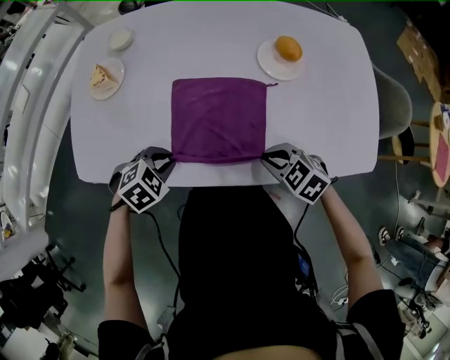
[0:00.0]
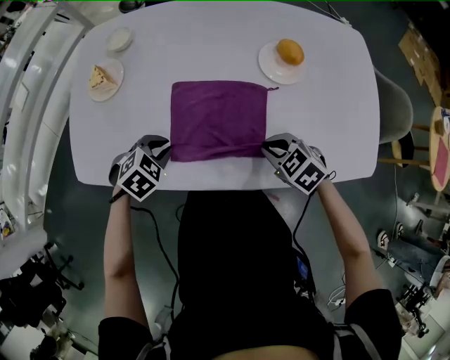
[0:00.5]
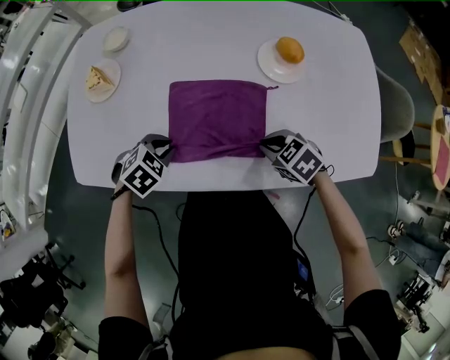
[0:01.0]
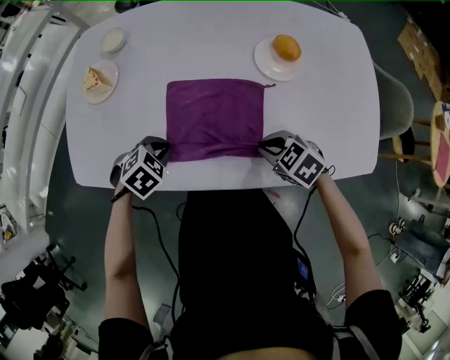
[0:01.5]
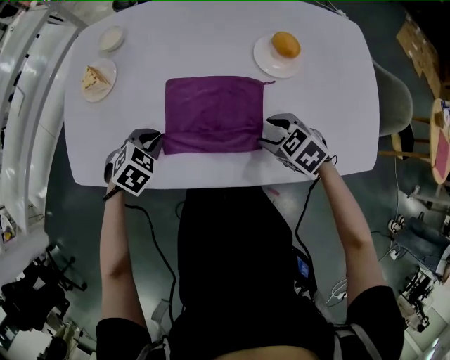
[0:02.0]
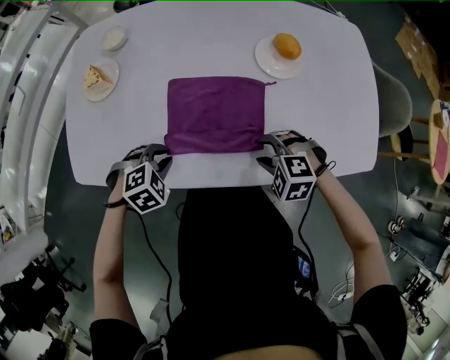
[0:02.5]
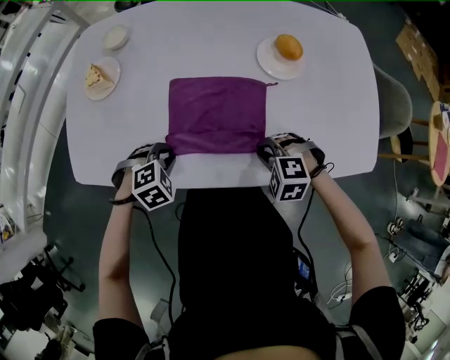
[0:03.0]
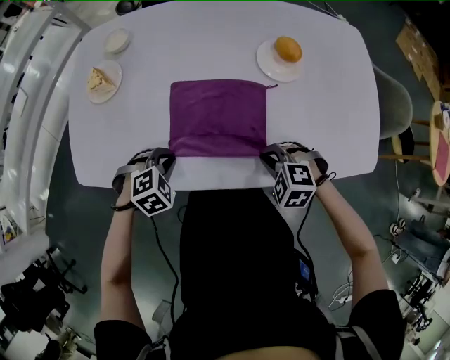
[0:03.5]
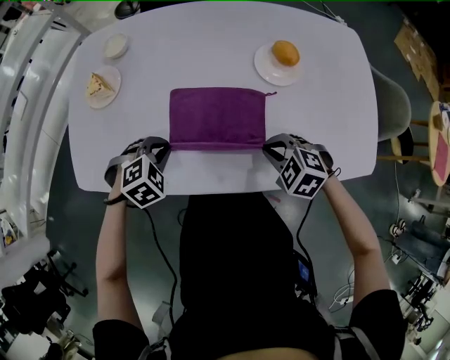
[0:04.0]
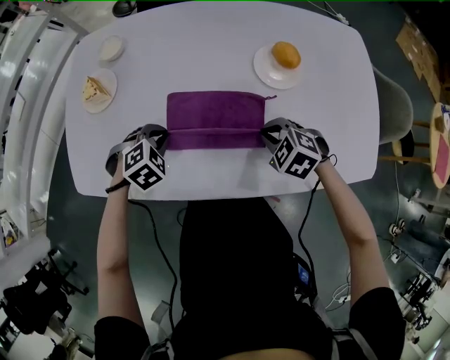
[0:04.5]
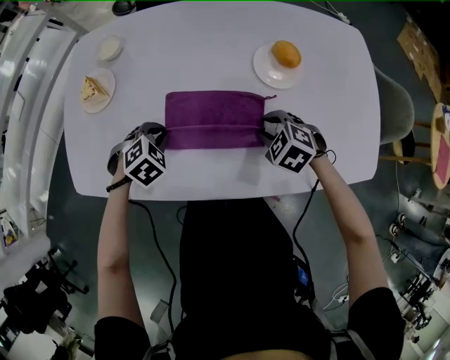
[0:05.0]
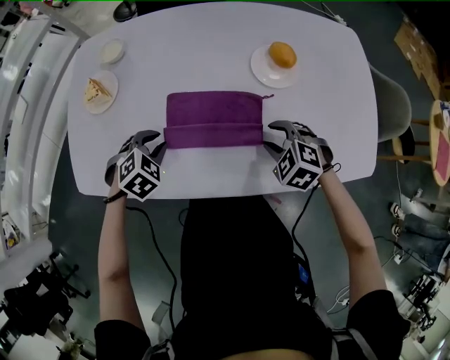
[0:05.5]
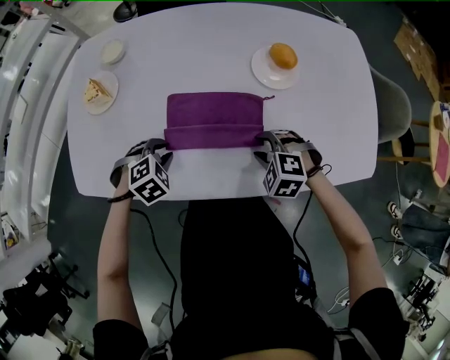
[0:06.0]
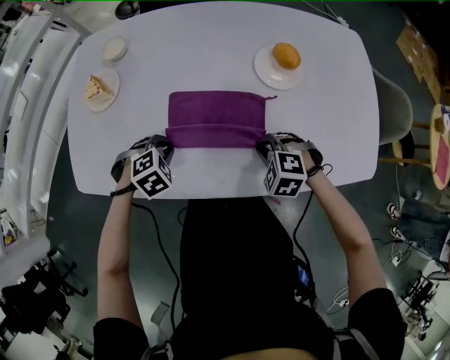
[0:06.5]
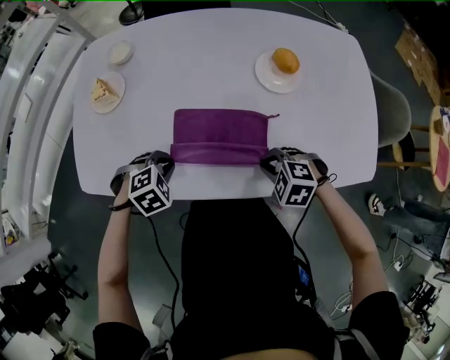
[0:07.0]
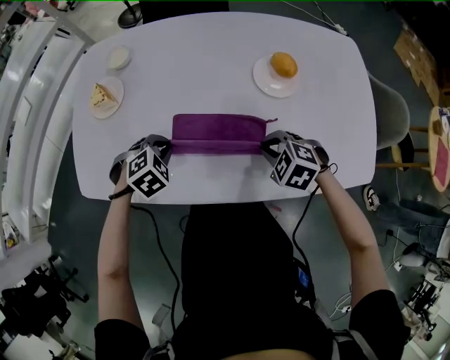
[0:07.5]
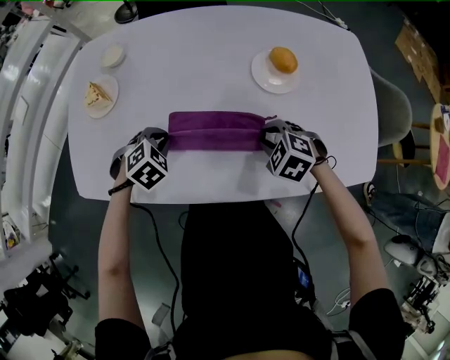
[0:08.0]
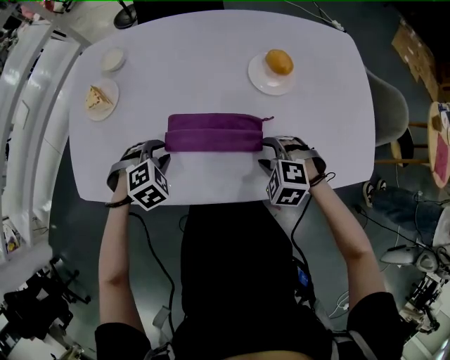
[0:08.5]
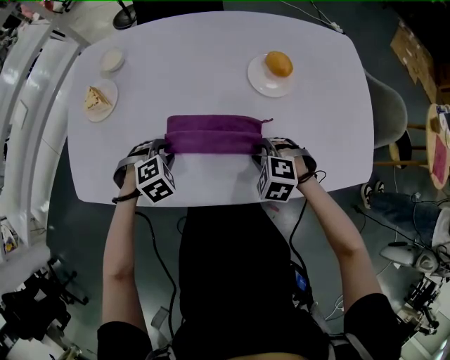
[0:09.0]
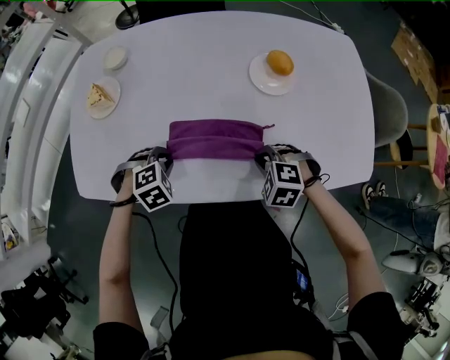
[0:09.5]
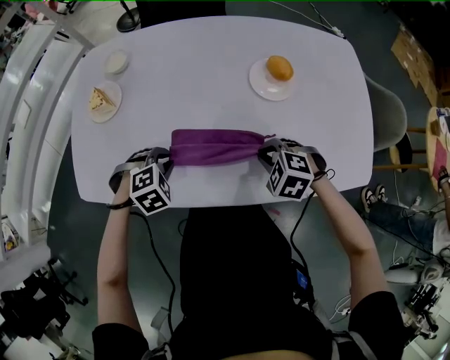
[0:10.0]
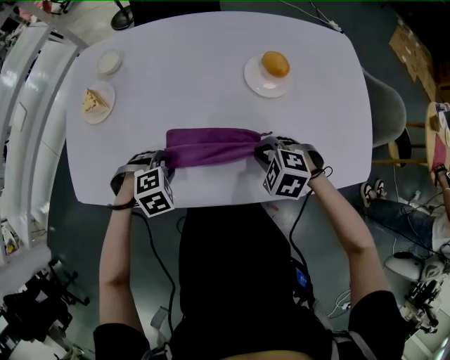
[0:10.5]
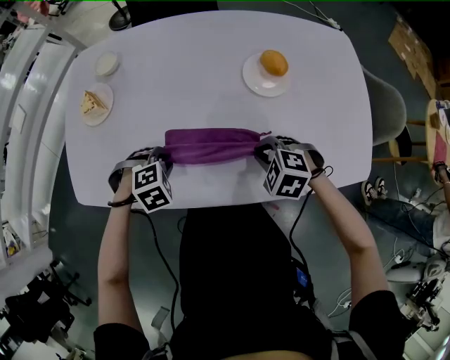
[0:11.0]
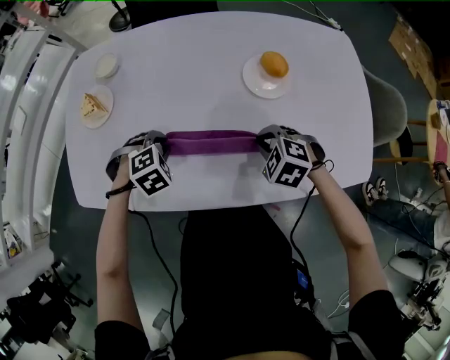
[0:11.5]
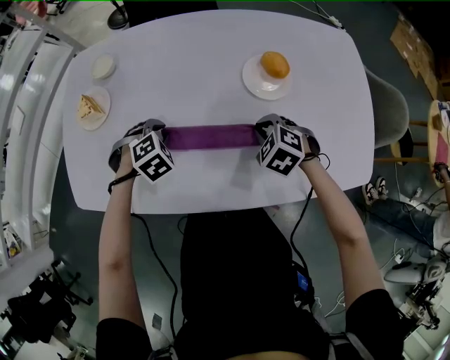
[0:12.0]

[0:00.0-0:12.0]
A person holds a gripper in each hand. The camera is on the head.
0:00.0 to 0:02.0: The right gripper changes place by roughly 10 cm, and opens its fingers. Meanwhile the left gripper moves about 10 cm.
0:02.0 to 0:04.0: The right gripper closes its fingers.
0:04.0 to 0:06.0: The right gripper goes forward and returns, approximately 10 cm each way, and opens.
0:06.0 to 0:08.0: The left gripper is displaced forward by approximately 5 cm.
0:08.0 to 0:10.0: The left gripper ends up roughly 5 cm from where it was.
0:10.0 to 0:12.0: The left gripper changes place by about 10 cm, while the right gripper moves about 10 cm.

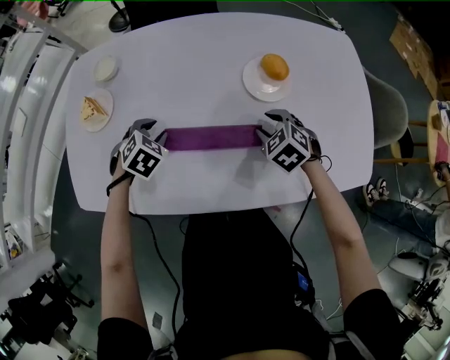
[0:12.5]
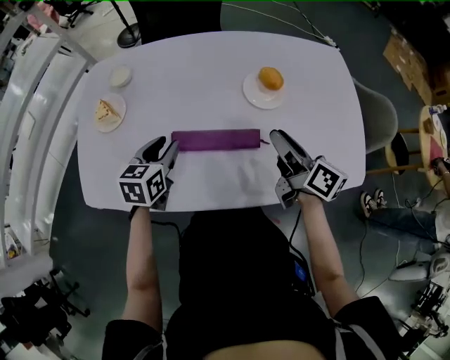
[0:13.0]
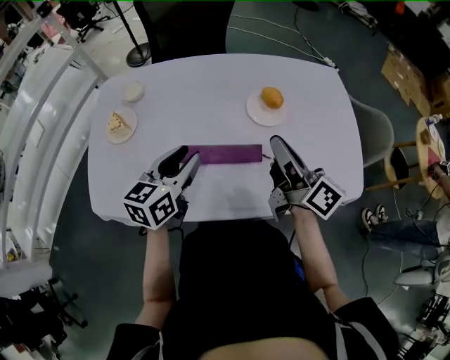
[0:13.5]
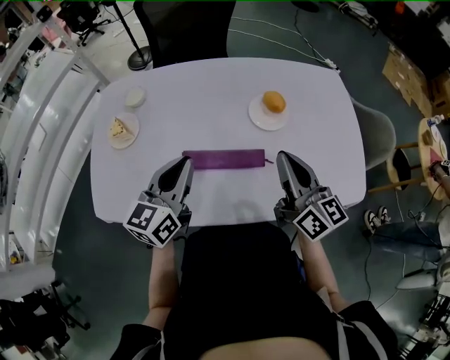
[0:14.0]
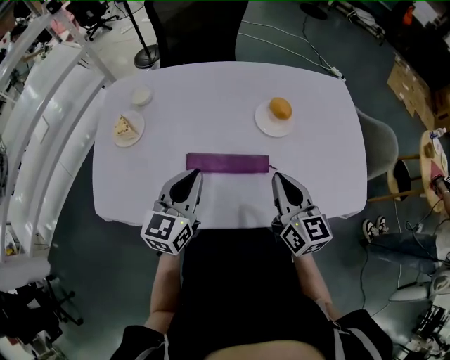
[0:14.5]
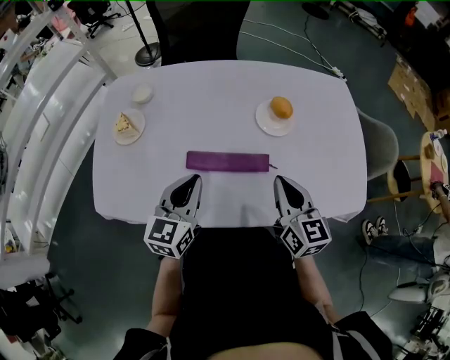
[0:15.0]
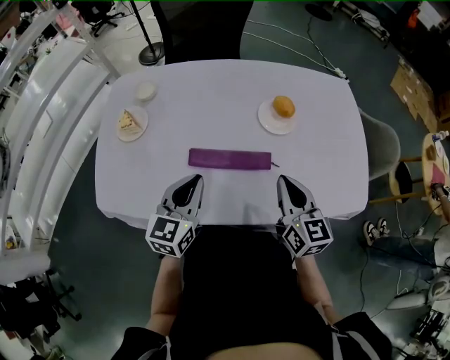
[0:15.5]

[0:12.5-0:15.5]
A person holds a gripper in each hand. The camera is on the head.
0:12.5 to 0:14.0: Both grippers travel together upward, approximately 25 cm. The left gripper tilts its fingers some 60 degrees upward, and closes up. Meanwhile the right gripper tips its fingers upward by approximately 60 degrees, and closes up.
0:14.0 to 0:15.5: The grippers both shift downward by some 5 cm. The right gripper swivels some 20 degrees.

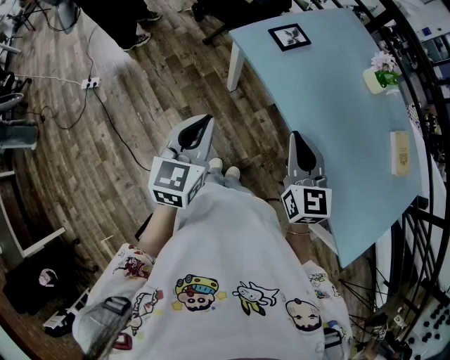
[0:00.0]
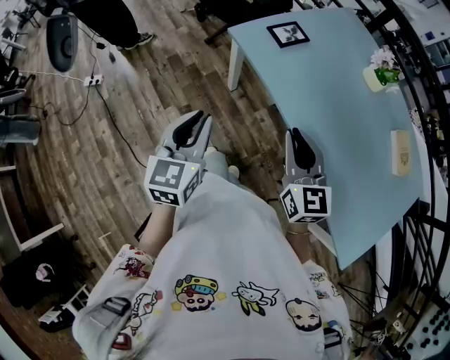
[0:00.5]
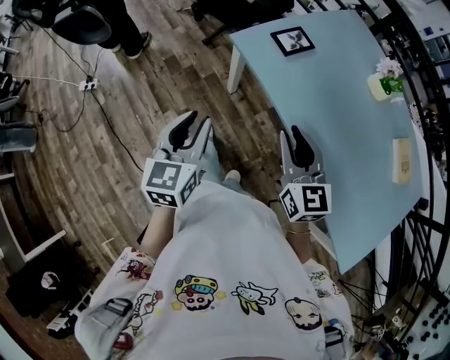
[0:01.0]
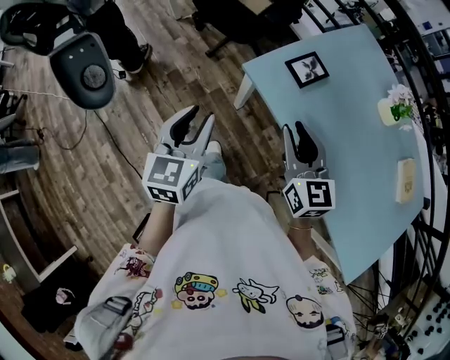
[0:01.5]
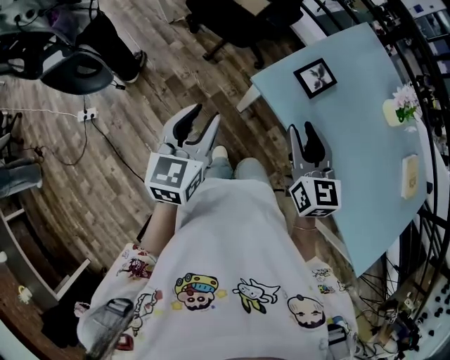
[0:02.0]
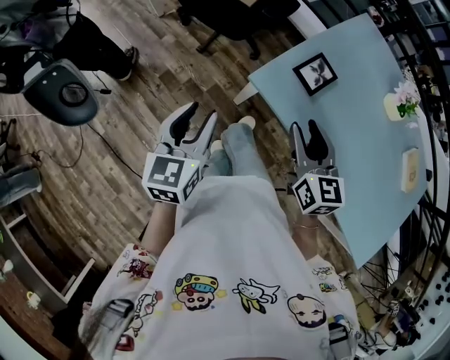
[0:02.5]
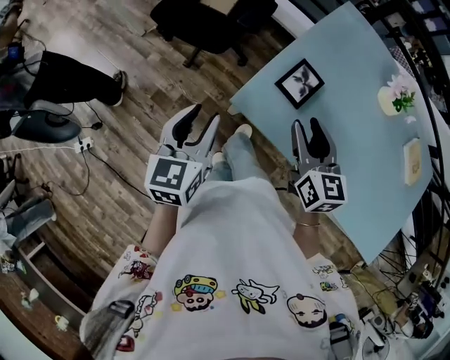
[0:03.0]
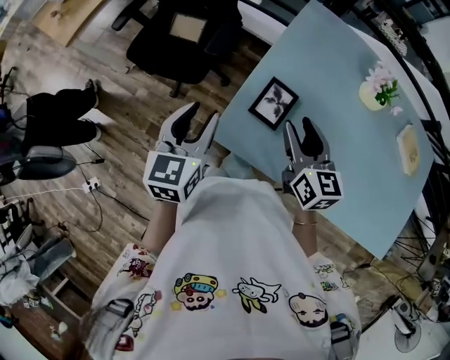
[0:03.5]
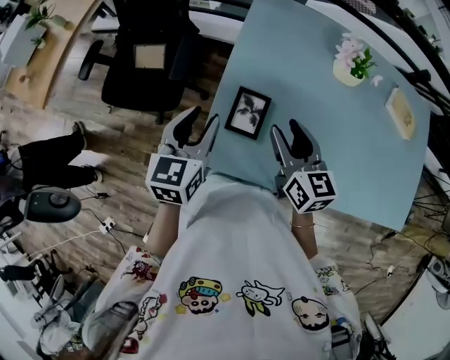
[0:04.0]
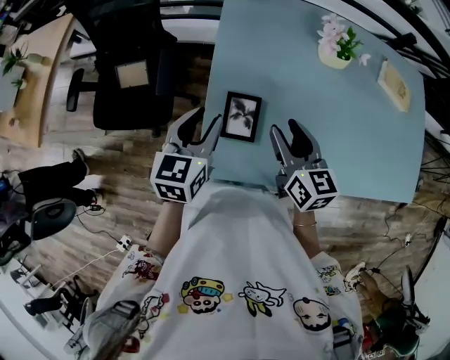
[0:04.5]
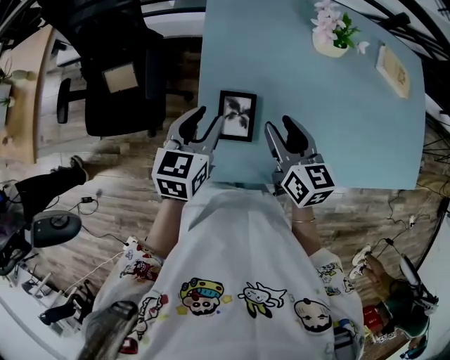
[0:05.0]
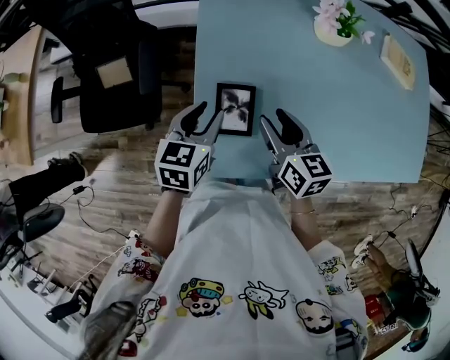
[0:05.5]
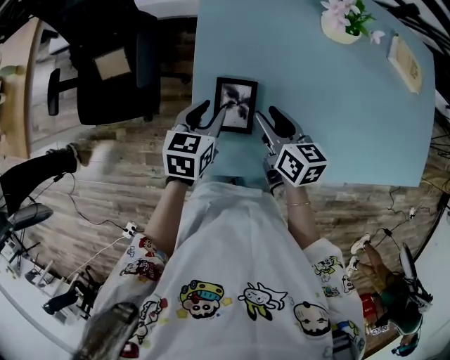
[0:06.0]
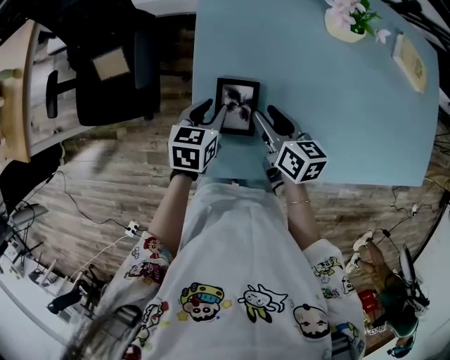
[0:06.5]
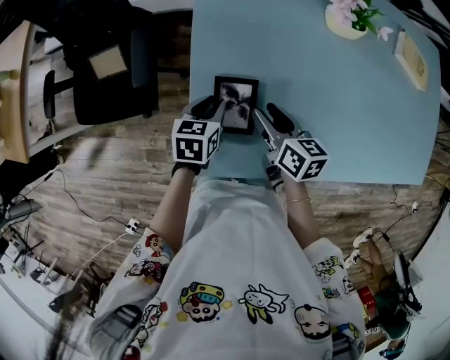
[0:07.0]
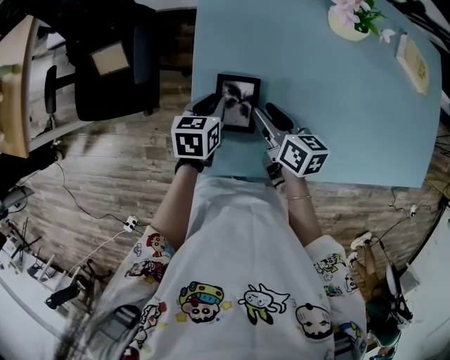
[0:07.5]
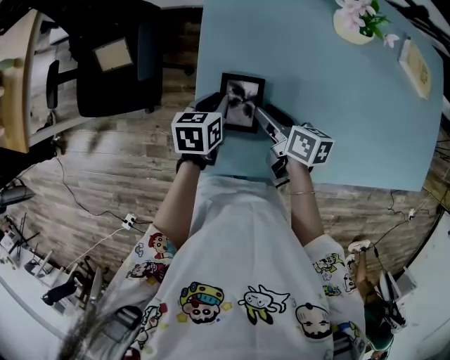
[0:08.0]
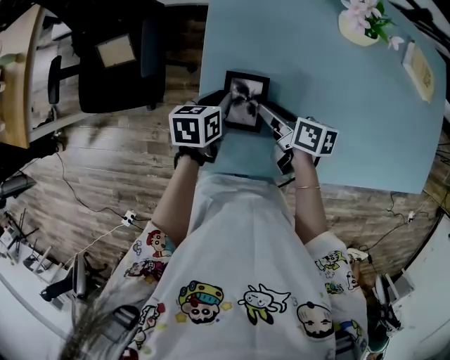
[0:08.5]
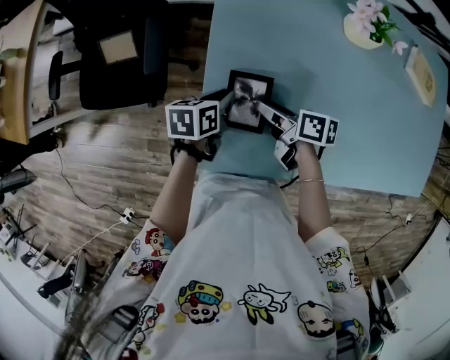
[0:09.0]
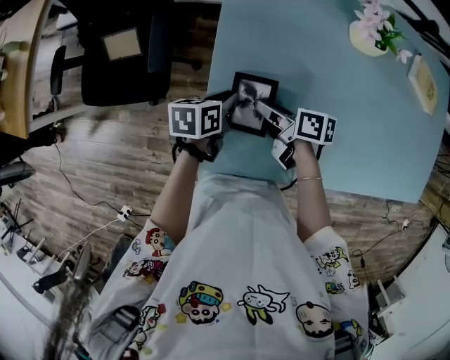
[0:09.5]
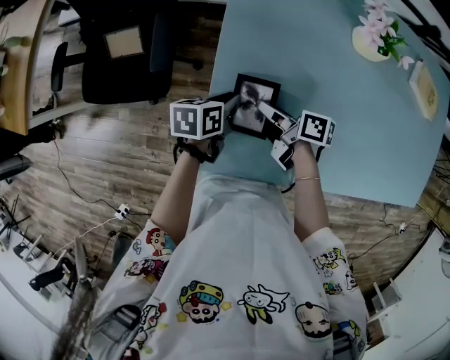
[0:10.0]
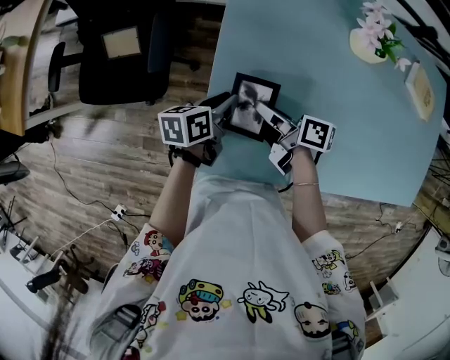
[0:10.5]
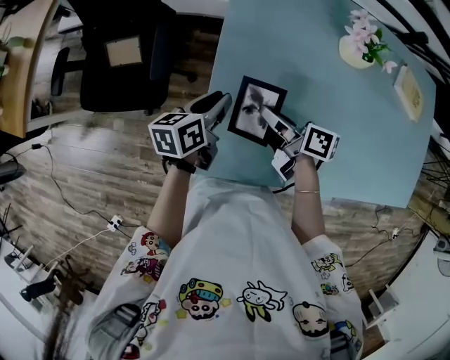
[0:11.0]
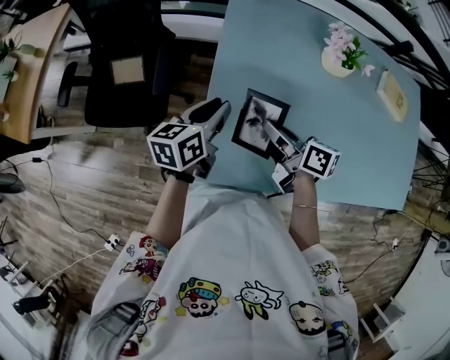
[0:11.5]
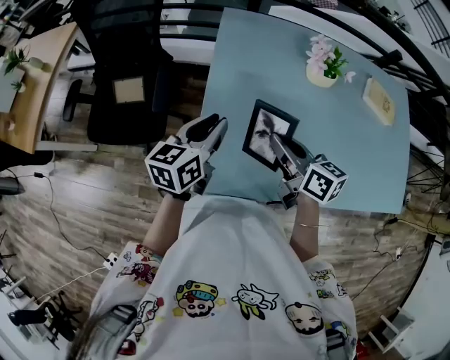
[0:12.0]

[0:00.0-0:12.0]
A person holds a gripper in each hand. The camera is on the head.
0:00.0 to 0:02.0: Both grippers travel together forward and to the left, roughly 30 cm. The right gripper opens. Meanwhile the left gripper opens up.
0:02.0 to 0:04.0: The right gripper ends up approximately 25 cm from where it was, and turns by about 30 degrees, while the left gripper moves roughly 35 cm, and changes its angle by approximately 30 degrees.
0:04.0 to 0:06.0: Both grippers travel together downward, roughly 15 cm. The right gripper changes its angle by some 20 degrees; the left gripper turns by roughly 30 degrees.
0:06.0 to 0:08.0: Both grippers travel together downward, about 5 cm.
0:08.0 to 0:10.0: The right gripper shifts by approximately 5 cm, turns by roughly 20 degrees, and closes its fingers.
0:10.0 to 0:12.0: The grippers both shift upward by some 20 cm. The left gripper turns by some 30 degrees. Meanwhile the right gripper rotates roughly 40 degrees.
